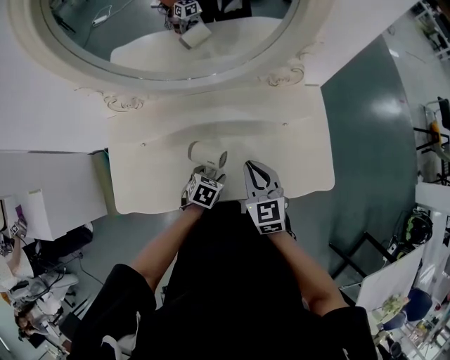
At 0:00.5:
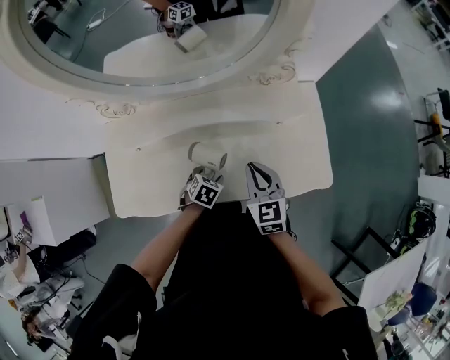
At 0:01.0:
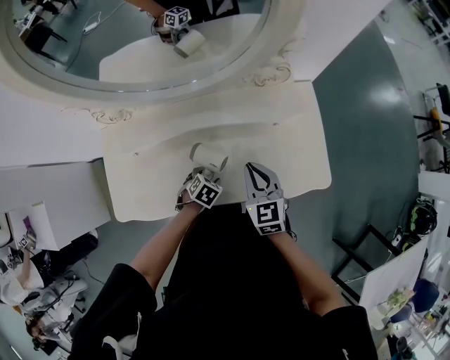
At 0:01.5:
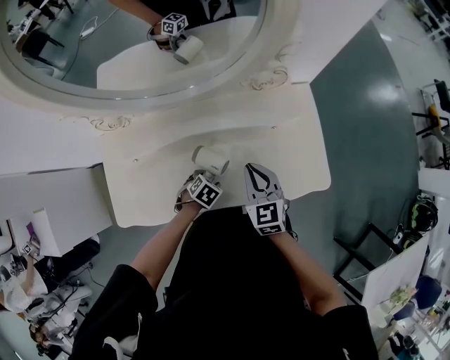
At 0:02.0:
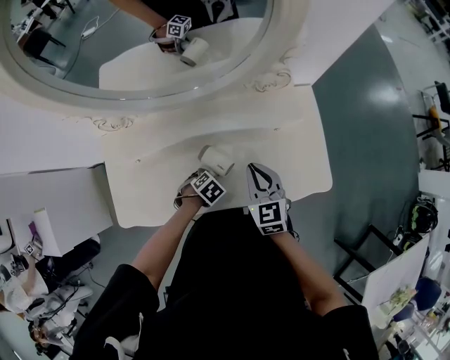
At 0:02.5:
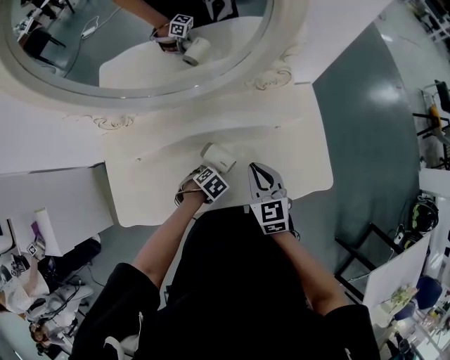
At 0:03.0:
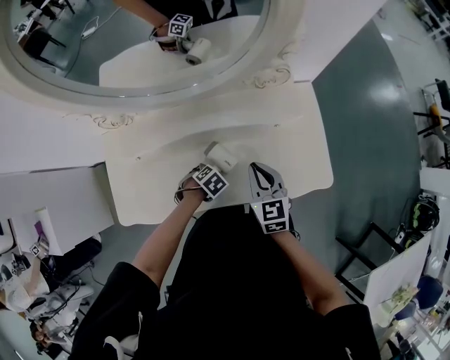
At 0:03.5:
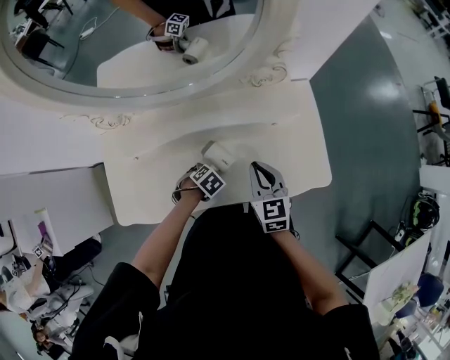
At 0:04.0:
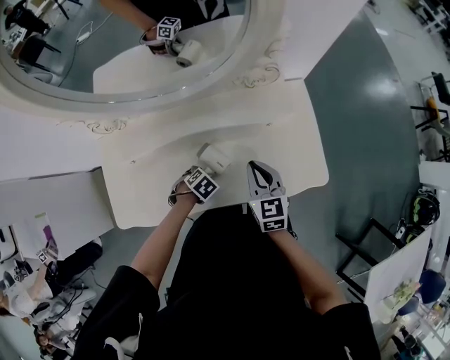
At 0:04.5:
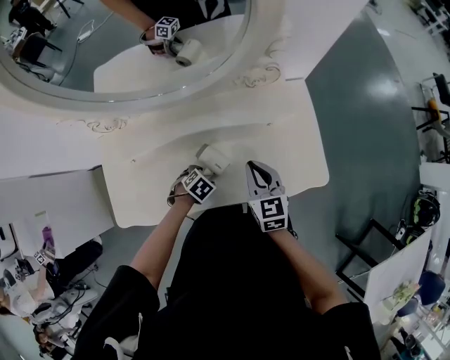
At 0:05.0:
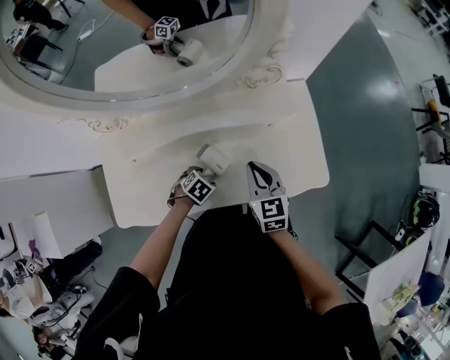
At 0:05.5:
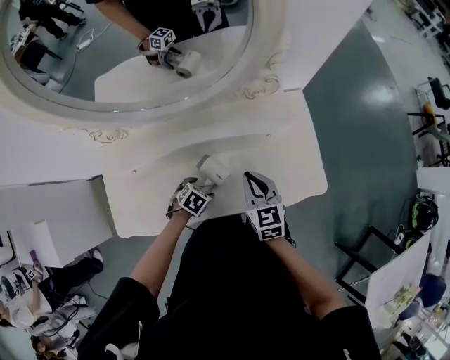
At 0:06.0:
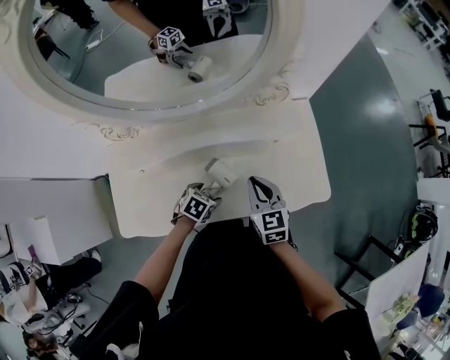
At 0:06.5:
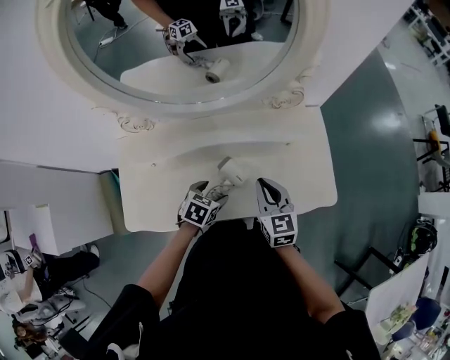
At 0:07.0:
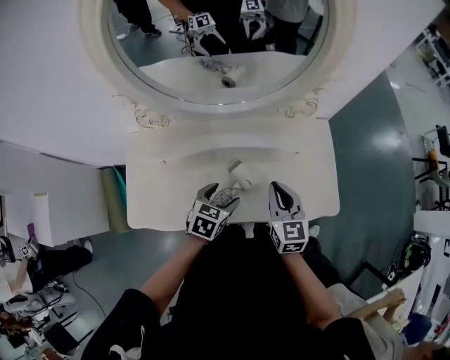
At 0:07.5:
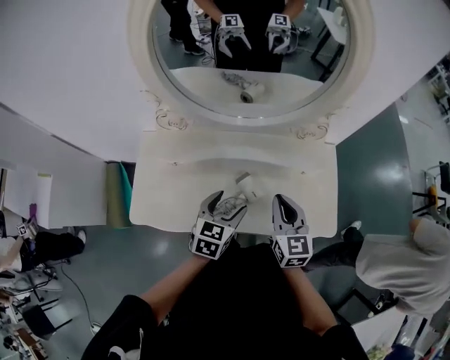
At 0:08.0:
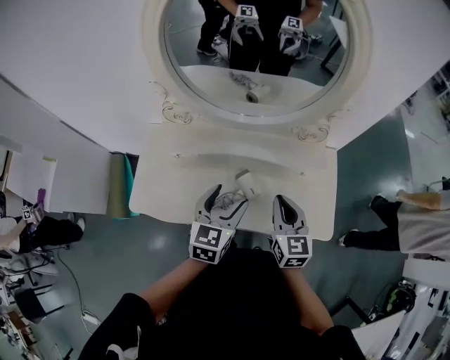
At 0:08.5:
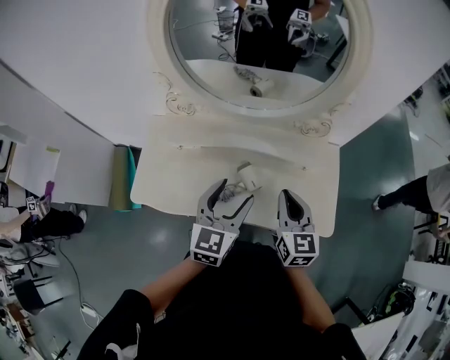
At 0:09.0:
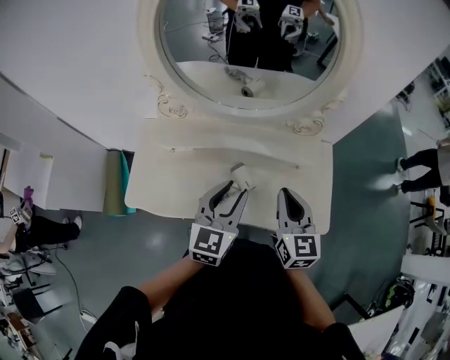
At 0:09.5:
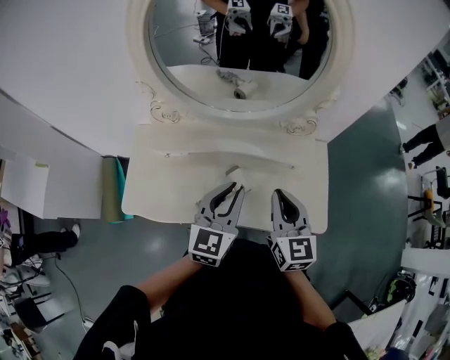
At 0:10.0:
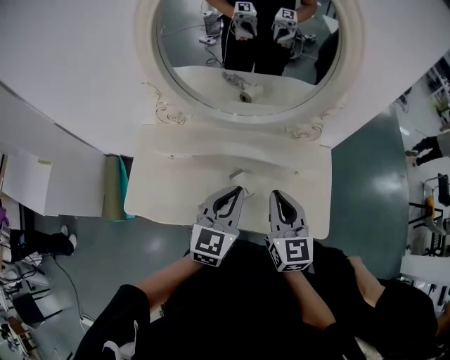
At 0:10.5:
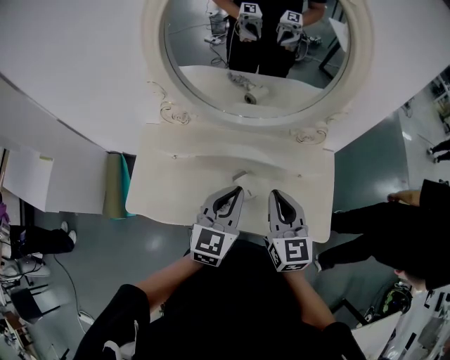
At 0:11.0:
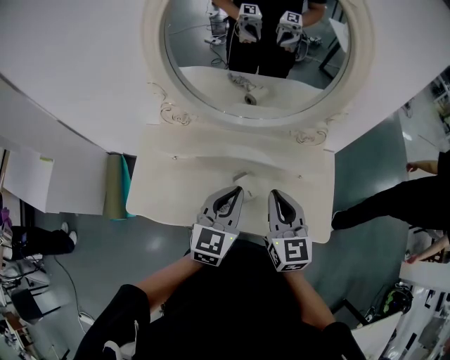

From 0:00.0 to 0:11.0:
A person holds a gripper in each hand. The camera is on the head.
From 0:00.0 to 0:02.0: The left gripper turns by about 30 degrees.
From 0:02.0 to 0:05.5: The grippers stay close to where they were, moving slightly.
From 0:05.5 to 0:07.5: The left gripper goes roughly 25 cm upward, and tips its fingers upward by approximately 40 degrees. The right gripper goes about 10 cm upward.
From 0:07.5 to 0:09.0: The left gripper moves upward, roughly 10 cm, changes its angle by about 20 degrees, and closes up. The right gripper is displaced upward by roughly 5 cm.
From 0:09.0 to 0:11.0: The right gripper ends up some 5 cm from where it was; the left gripper closes its fingers.

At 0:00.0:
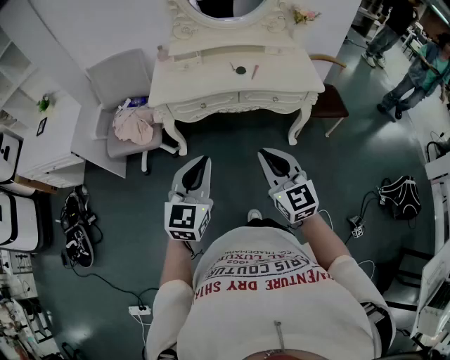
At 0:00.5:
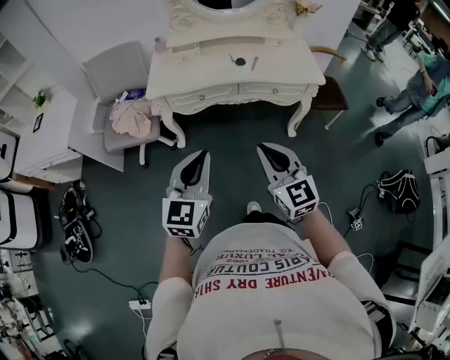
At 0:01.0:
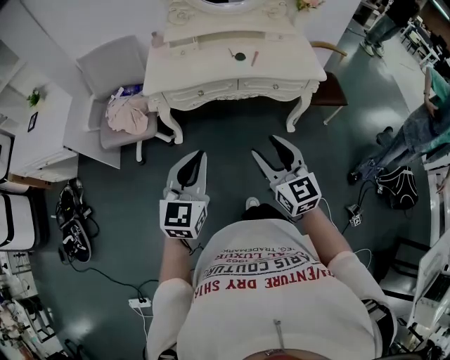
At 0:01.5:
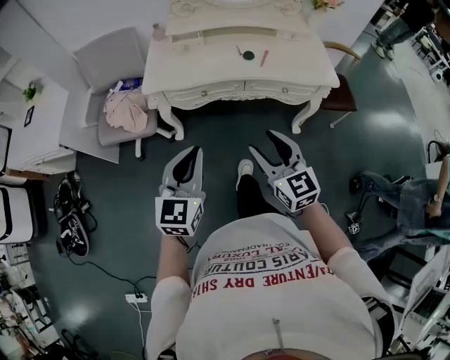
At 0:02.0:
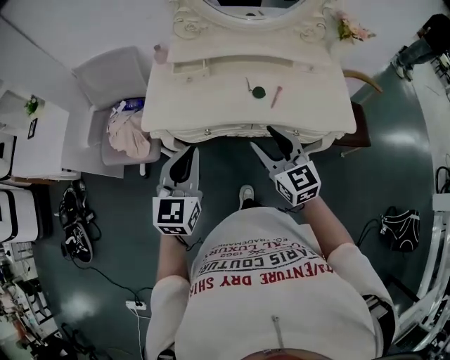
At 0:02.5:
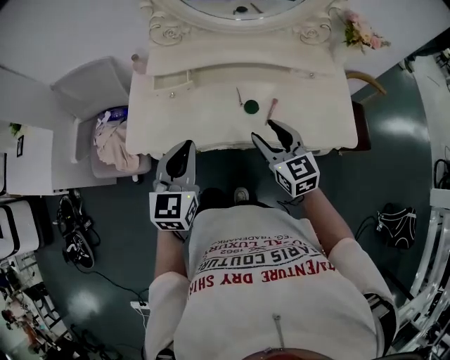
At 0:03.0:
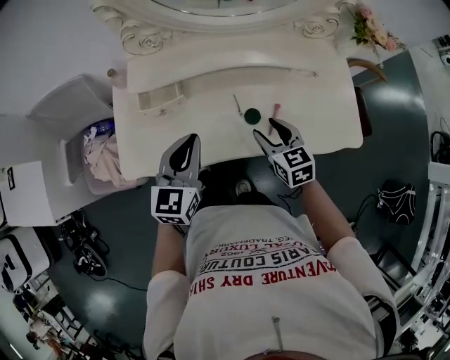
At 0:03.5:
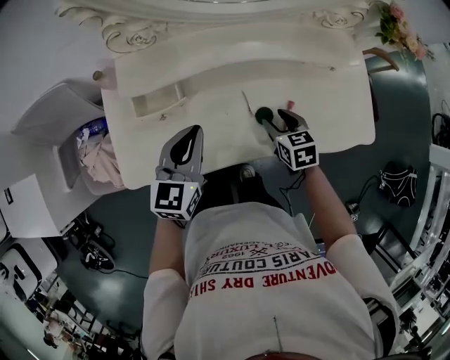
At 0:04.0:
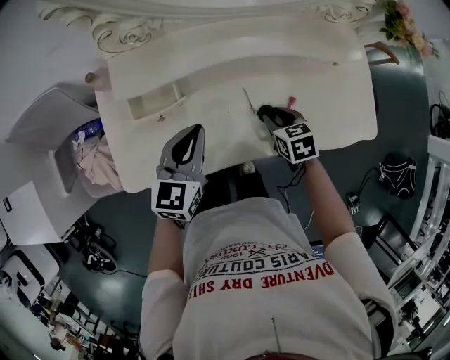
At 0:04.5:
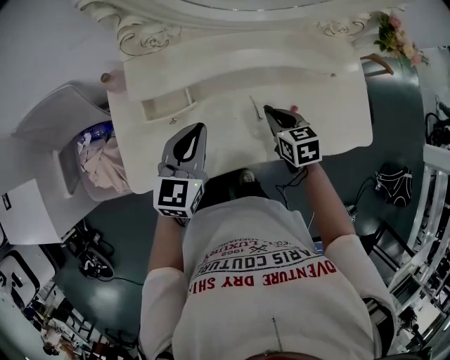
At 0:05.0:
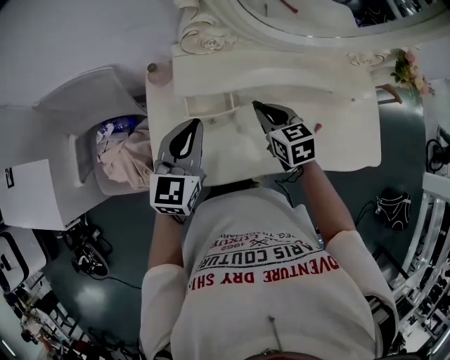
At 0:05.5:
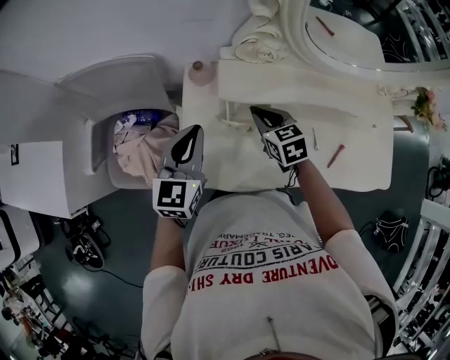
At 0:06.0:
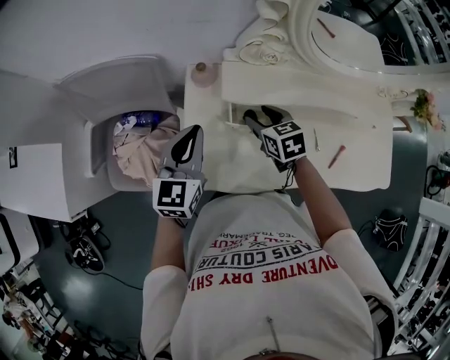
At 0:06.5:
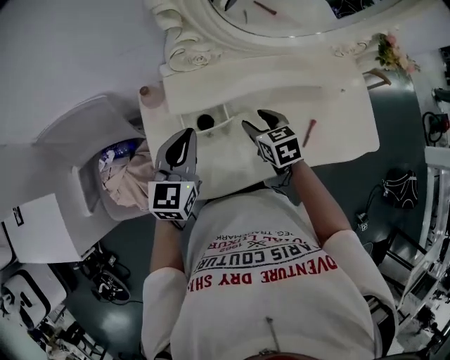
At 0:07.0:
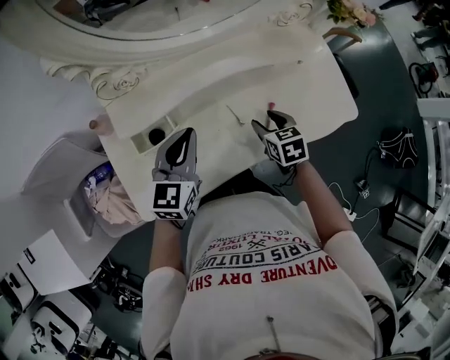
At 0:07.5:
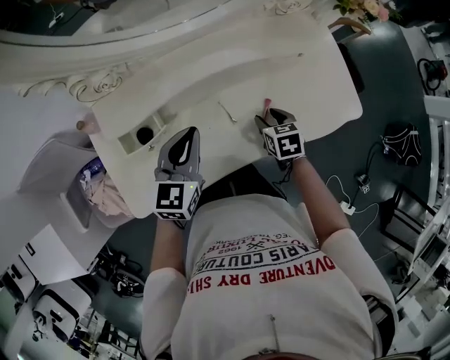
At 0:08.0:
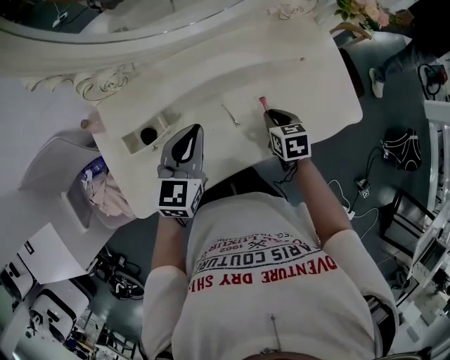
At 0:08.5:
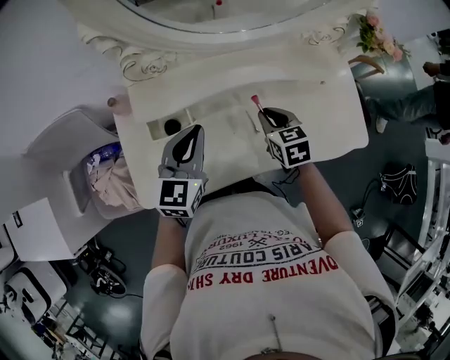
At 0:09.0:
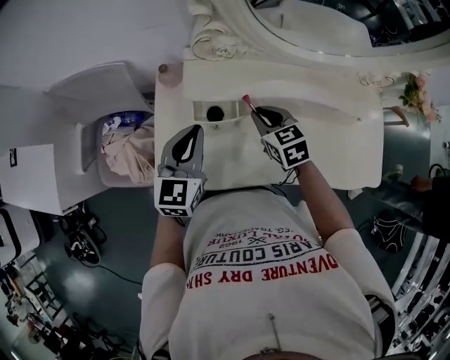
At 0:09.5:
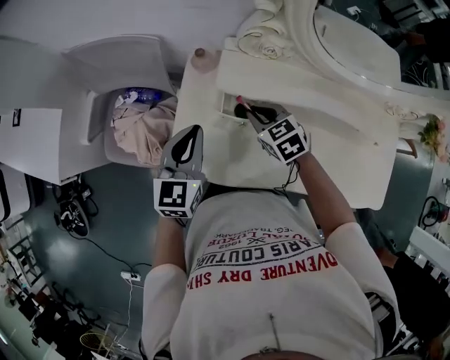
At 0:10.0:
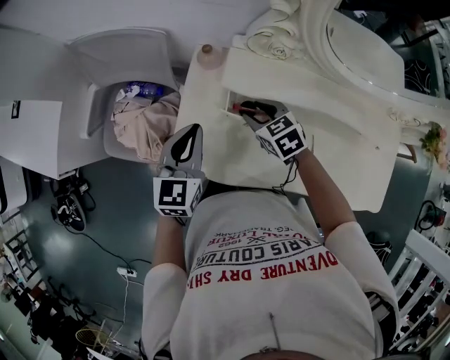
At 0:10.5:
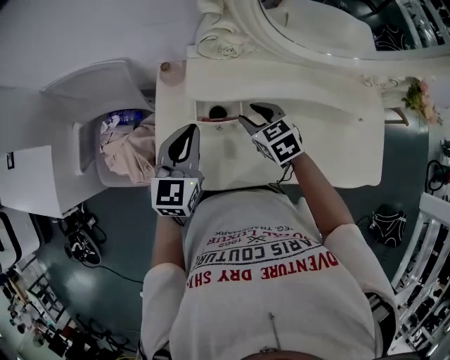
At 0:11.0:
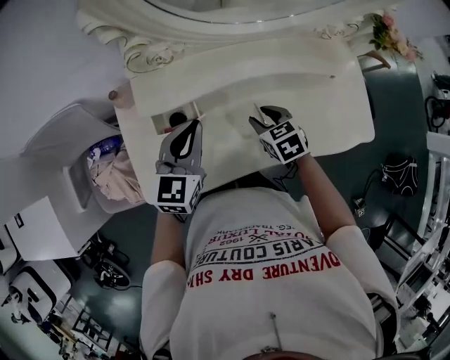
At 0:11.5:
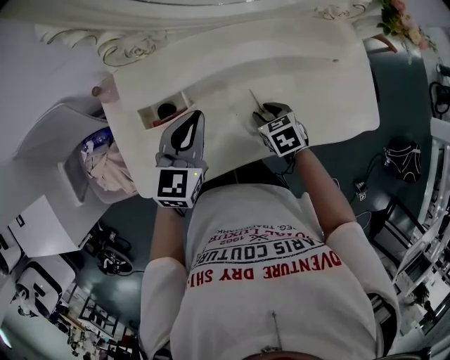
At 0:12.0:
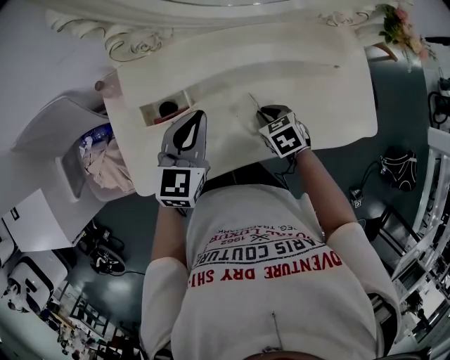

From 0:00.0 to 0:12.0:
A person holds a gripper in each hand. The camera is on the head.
From 0:00.0 to 0:02.0: The grippers both shift forward by about 30 cm. The right gripper opens its fingers.
From 0:02.0 to 0:04.0: Both grippers travel together forward and downward, about 35 cm. The right gripper points its fingers some 40 degrees further downward, while the left gripper changes its angle by about 20 degrees.
From 0:04.0 to 0:06.0: The grippers both shift to the left by approximately 30 cm. The right gripper closes, then reopens.
From 0:06.0 to 0:08.0: The right gripper ends up some 40 cm from where it was, changes its angle by some 30 degrees, and closes, while the left gripper ends up approximately 30 cm from where it was, and changes its angle by approximately 30 degrees.
From 0:08.0 to 0:10.0: The right gripper ends up some 40 cm from where it was, rotates approximately 60 degrees, and opens its fingers, while the left gripper moves approximately 30 cm, and changes its angle by about 40 degrees.
From 0:10.0 to 0:12.0: The left gripper shifts by approximately 25 cm, and swivels about 30 degrees. Meanwhile the right gripper shifts by about 30 cm, swivels roughly 30 degrees, and closes up.

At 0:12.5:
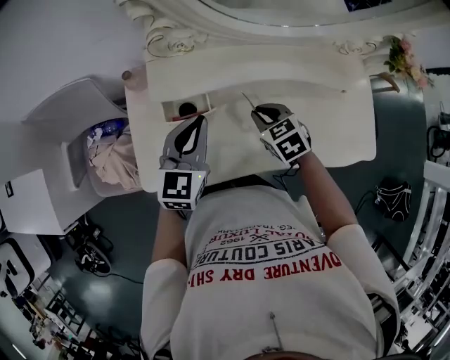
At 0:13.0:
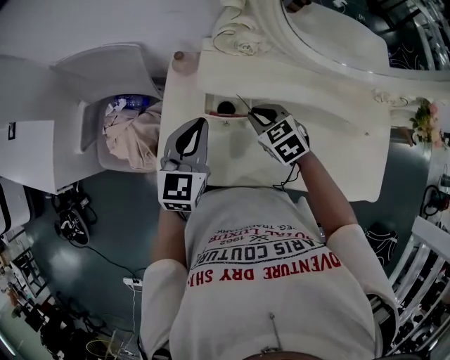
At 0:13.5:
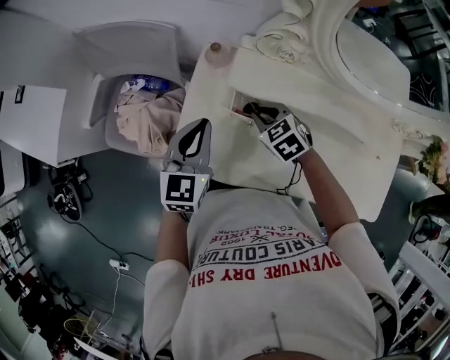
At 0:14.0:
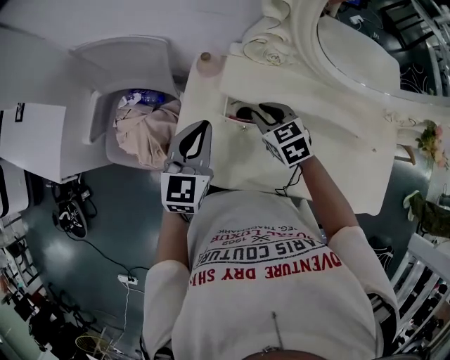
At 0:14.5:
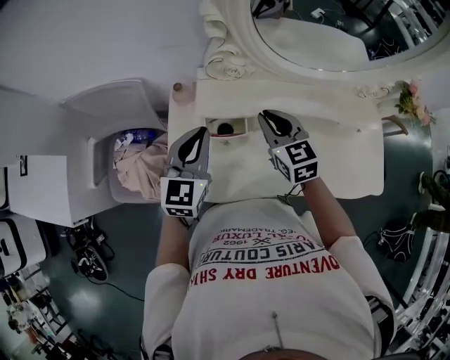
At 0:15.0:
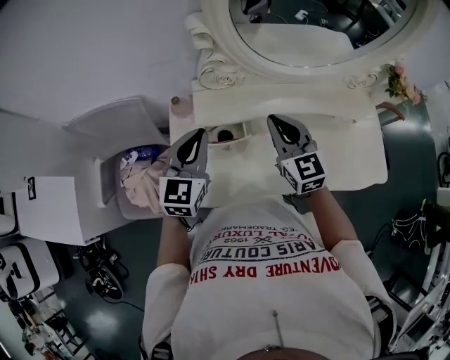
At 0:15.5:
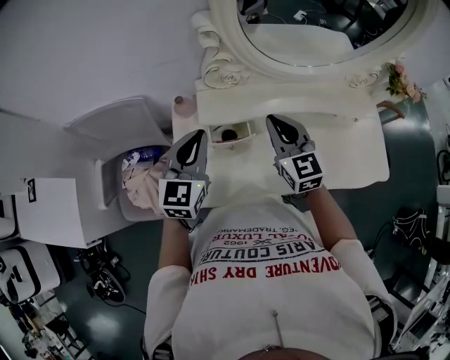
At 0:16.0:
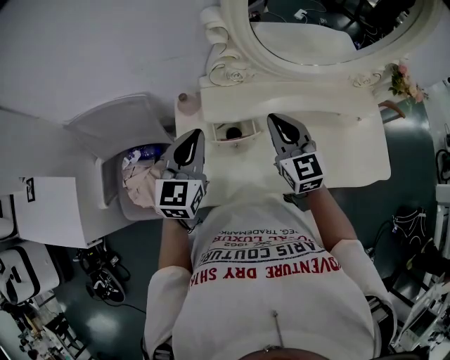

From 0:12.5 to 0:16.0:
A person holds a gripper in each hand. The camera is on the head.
From 0:12.5 to 0:14.5: The right gripper shifts some 15 cm upward, to the left and forward, and swivels about 30 degrees. The left gripper travels to the left and upward by some 10 cm.
From 0:14.5 to 0:16.0: The grippers move only a little.
